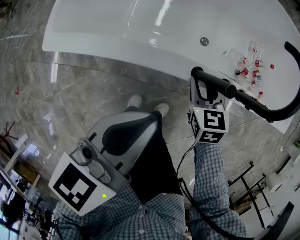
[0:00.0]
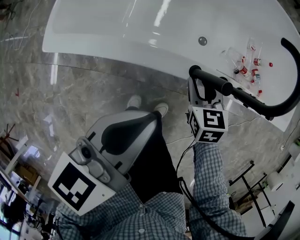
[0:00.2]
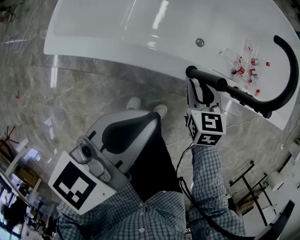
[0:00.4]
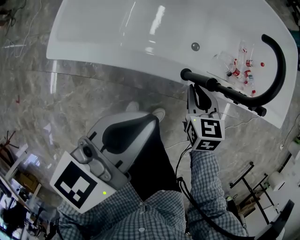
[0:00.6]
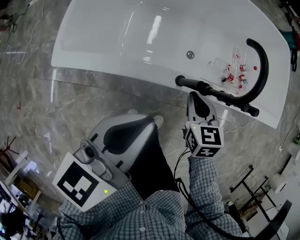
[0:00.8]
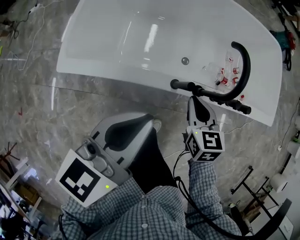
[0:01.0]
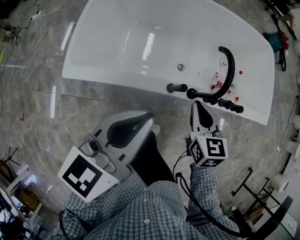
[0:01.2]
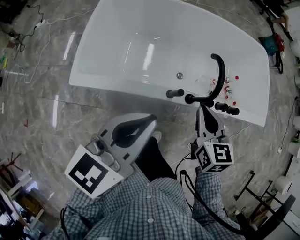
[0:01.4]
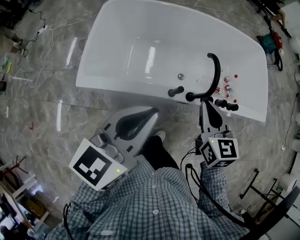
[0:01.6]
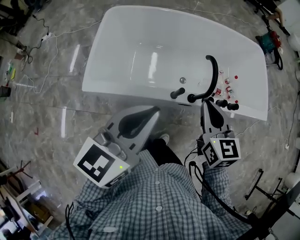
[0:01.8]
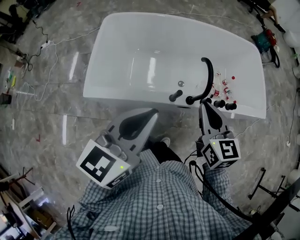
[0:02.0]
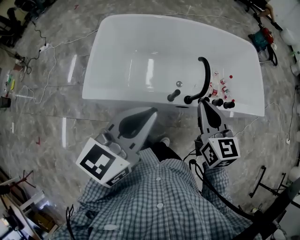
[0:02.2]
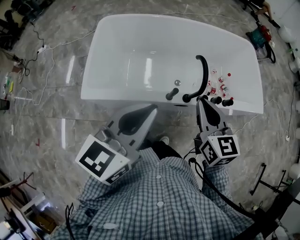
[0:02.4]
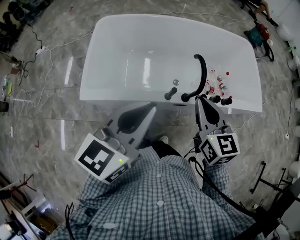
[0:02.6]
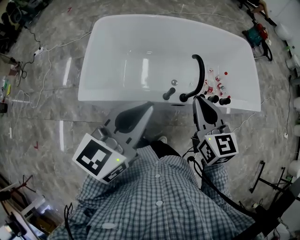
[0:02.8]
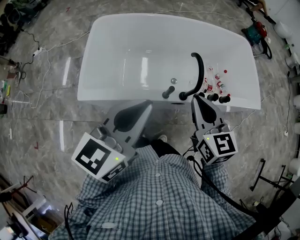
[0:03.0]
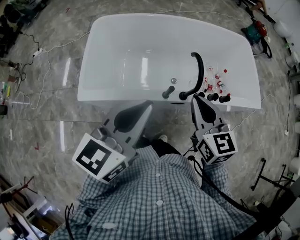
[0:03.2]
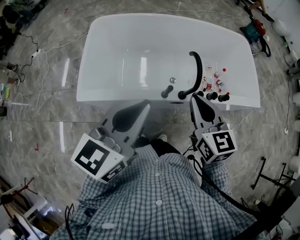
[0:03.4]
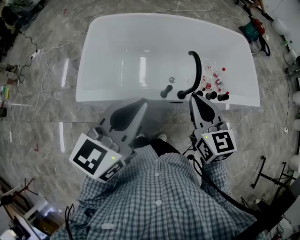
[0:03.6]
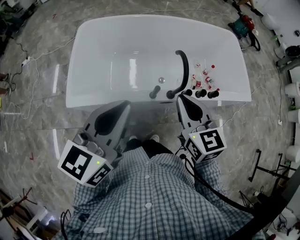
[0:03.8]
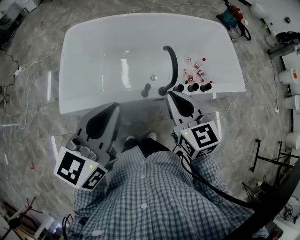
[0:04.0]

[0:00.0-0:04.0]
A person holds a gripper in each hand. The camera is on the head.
0:00.0 to 0:01.4: The two grippers go some 25 cm upward. The right gripper rotates about 20 degrees, and closes up.
0:01.4 to 0:02.6: The grippers both shift upward by approximately 10 cm.
0:02.6 to 0:04.0: The grippers make only small movements.

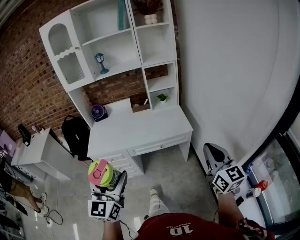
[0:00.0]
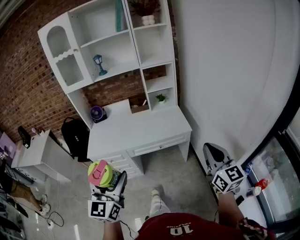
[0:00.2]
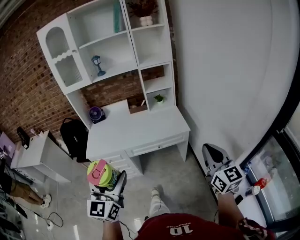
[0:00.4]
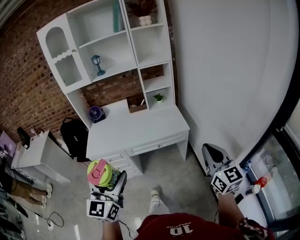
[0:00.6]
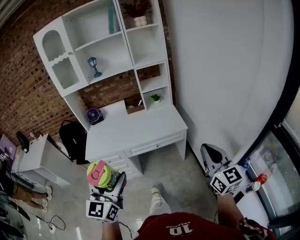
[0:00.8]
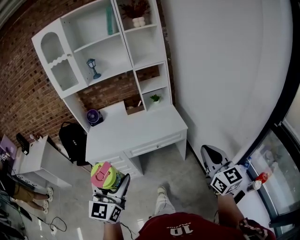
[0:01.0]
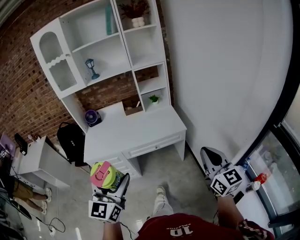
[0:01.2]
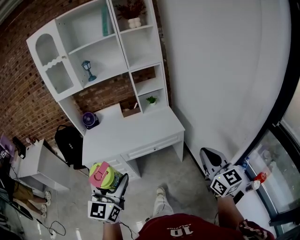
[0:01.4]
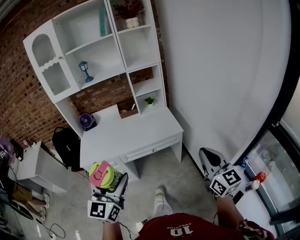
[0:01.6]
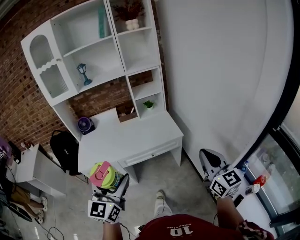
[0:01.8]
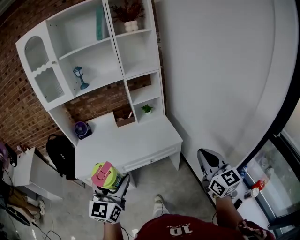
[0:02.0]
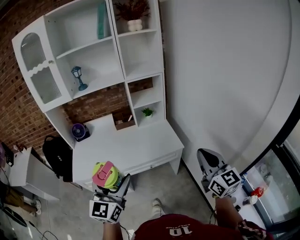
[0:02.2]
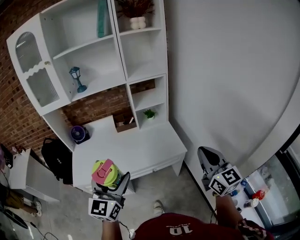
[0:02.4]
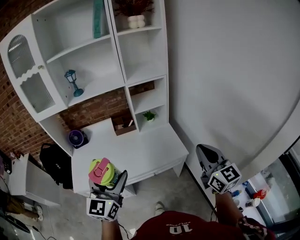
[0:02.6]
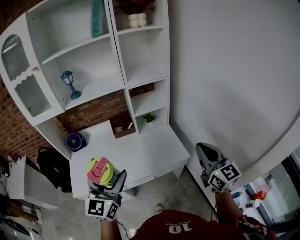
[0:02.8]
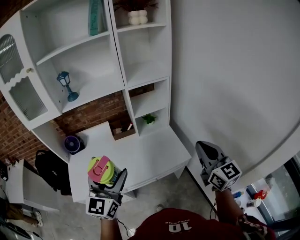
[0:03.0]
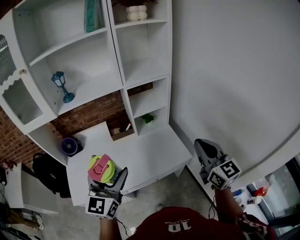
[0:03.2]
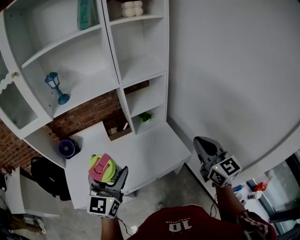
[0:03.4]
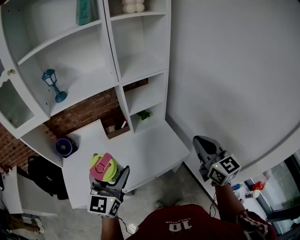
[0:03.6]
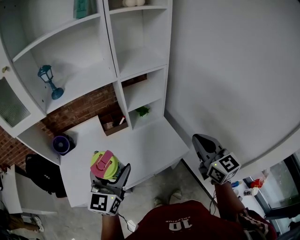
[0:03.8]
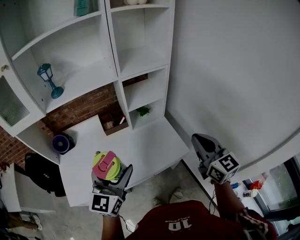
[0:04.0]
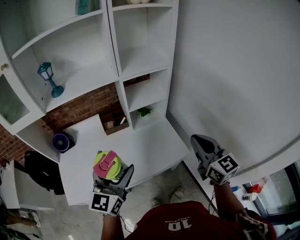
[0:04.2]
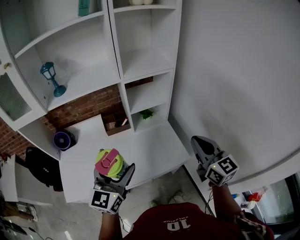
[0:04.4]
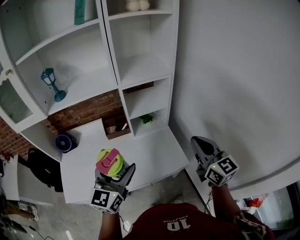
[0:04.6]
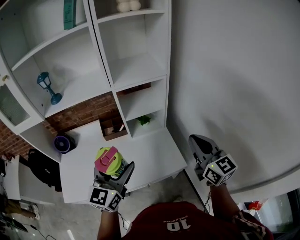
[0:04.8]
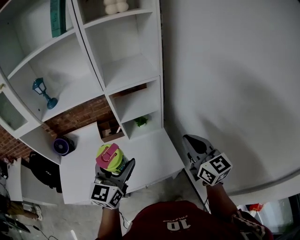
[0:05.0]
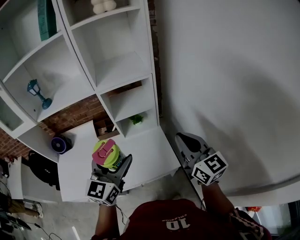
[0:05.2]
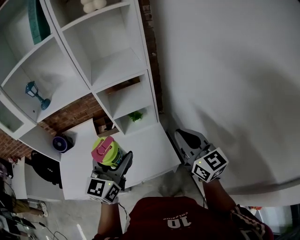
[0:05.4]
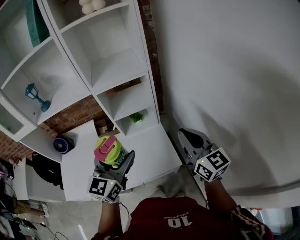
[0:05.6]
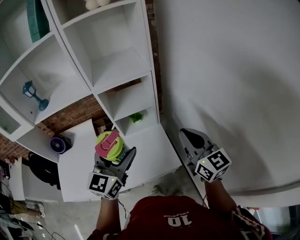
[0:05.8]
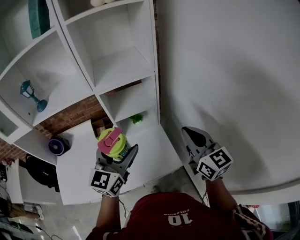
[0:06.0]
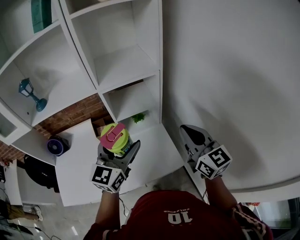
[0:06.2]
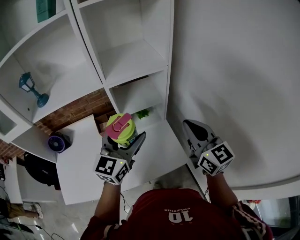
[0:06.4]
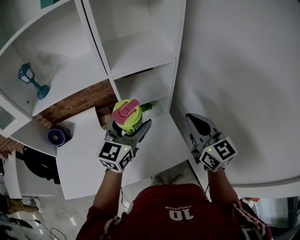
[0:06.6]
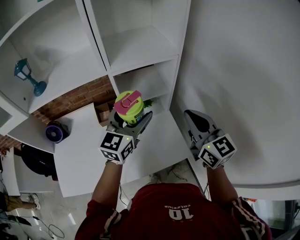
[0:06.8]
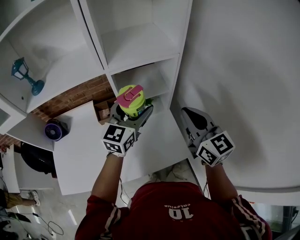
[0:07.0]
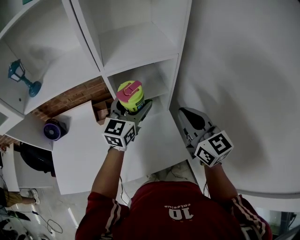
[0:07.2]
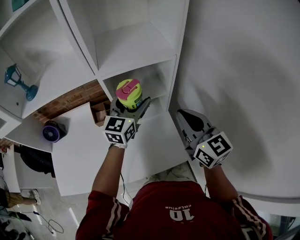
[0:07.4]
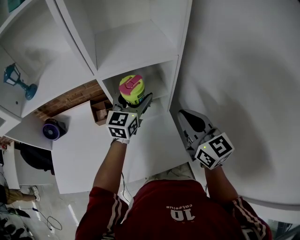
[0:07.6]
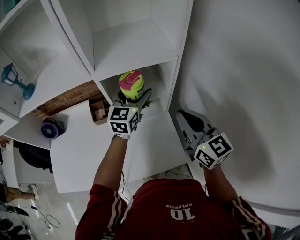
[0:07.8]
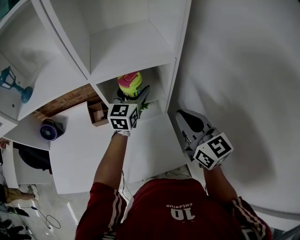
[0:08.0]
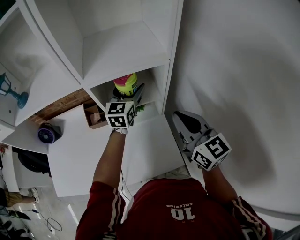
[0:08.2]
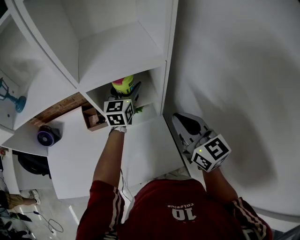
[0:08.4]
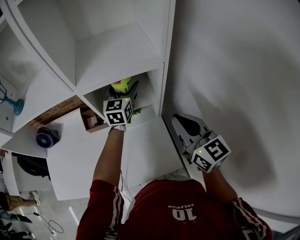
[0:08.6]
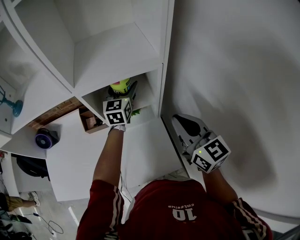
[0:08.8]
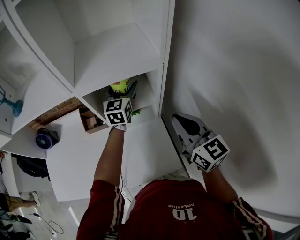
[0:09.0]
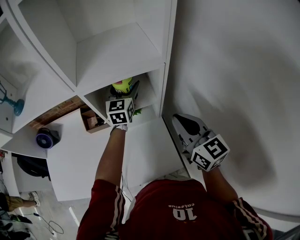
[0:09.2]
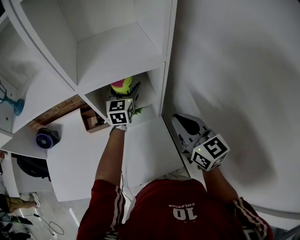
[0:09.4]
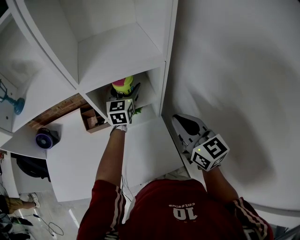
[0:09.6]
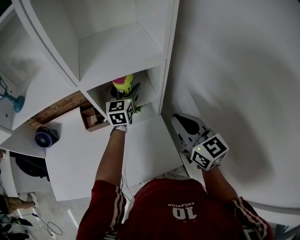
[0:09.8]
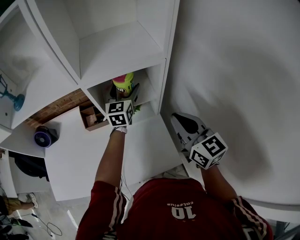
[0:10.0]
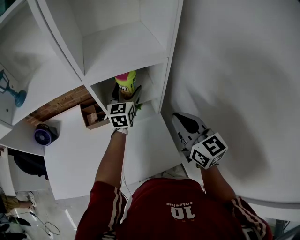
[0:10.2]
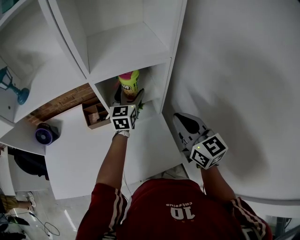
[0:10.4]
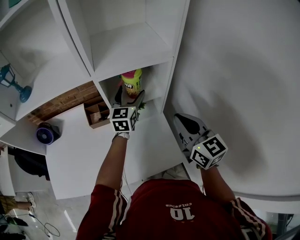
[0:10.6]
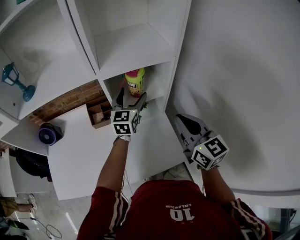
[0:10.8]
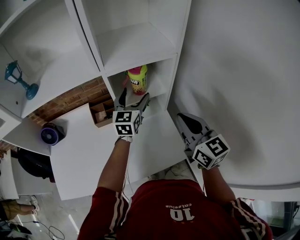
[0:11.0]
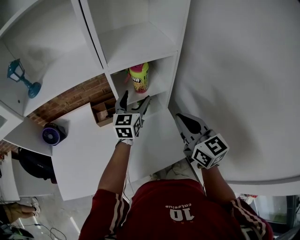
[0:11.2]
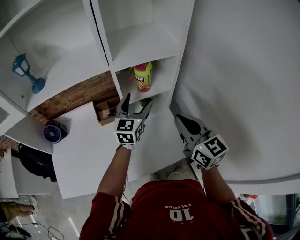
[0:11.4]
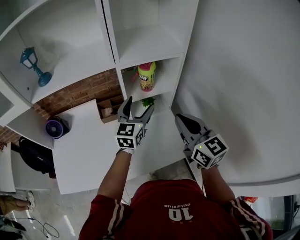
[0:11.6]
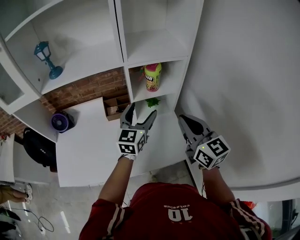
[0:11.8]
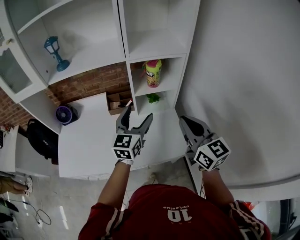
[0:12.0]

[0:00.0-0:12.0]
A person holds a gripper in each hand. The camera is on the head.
0:00.0 to 0:01.6: The grippers move only a little.
0:01.6 to 0:03.0: Both grippers travel together forward, roughly 35 cm.
0:03.0 to 0:04.4: The right gripper heads forward, covering about 10 cm. The left gripper heads forward and downward, covering roughly 10 cm.
0:04.4 to 0:06.0: The right gripper heads forward and to the right, covering some 15 cm. The left gripper moves to the right and forward, about 20 cm.
0:06.0 to 0:07.6: The right gripper moves forward and to the left, approximately 10 cm, while the left gripper travels forward by about 25 cm.
0:07.6 to 0:09.0: The left gripper shifts roughly 10 cm forward, while the right gripper changes place by approximately 5 cm.
0:09.0 to 0:10.4: The left gripper is displaced backward by roughly 5 cm.
0:10.4 to 0:12.0: The right gripper is displaced backward and to the left by approximately 15 cm, while the left gripper travels backward by about 25 cm.

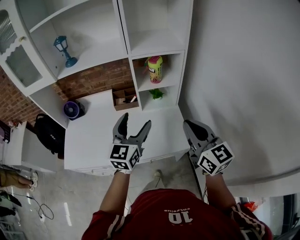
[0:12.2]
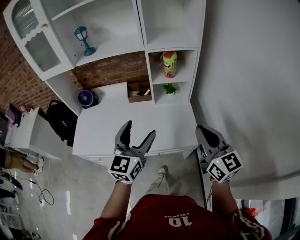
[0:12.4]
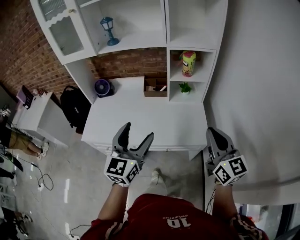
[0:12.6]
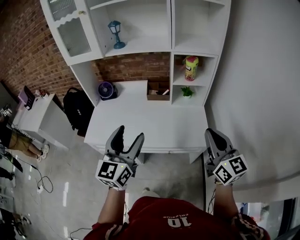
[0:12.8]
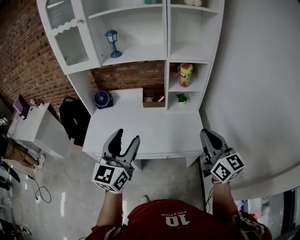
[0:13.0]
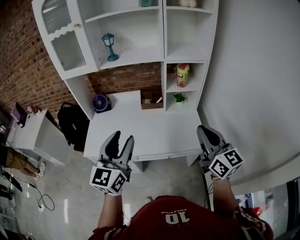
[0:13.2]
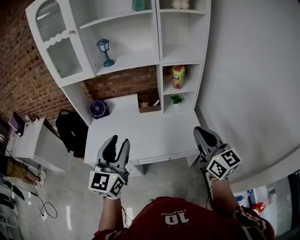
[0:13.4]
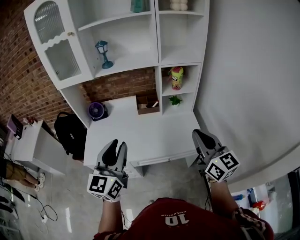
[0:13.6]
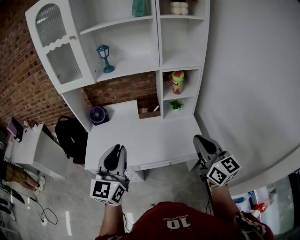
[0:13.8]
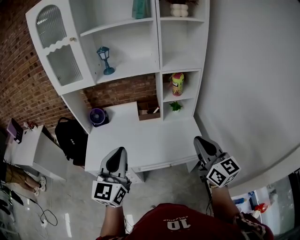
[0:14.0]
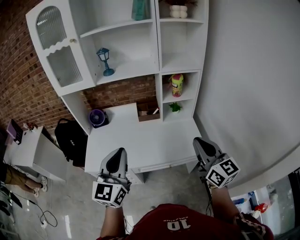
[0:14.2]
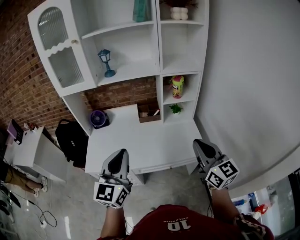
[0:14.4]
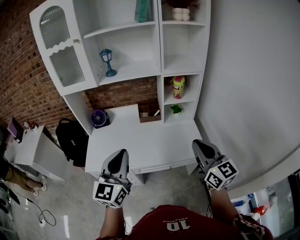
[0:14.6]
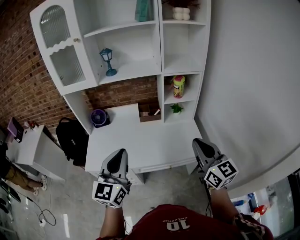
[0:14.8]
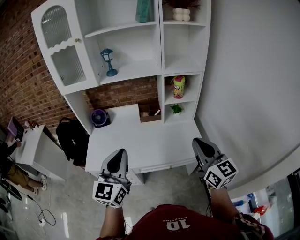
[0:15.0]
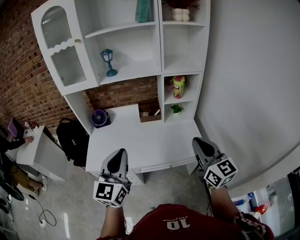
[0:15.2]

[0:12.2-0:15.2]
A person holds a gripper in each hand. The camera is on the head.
0:12.2 to 0:13.8: The right gripper shifts approximately 15 cm backward and to the left, while the left gripper goes approximately 30 cm to the left, backward and upward, and closes its fingers.
0:13.8 to 0:15.2: The grippers make only small movements.

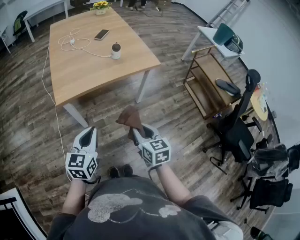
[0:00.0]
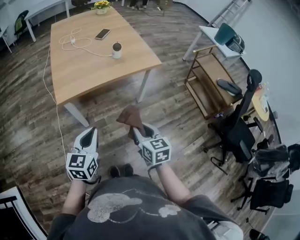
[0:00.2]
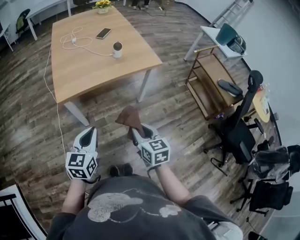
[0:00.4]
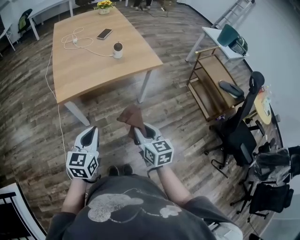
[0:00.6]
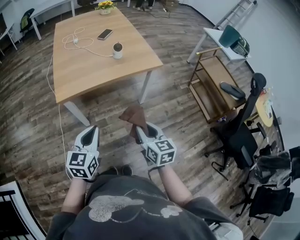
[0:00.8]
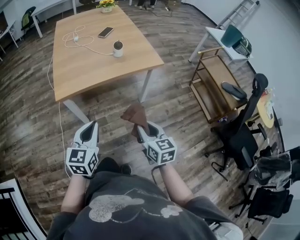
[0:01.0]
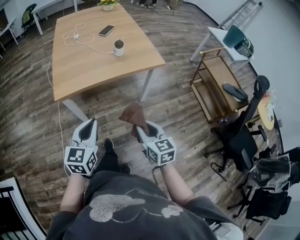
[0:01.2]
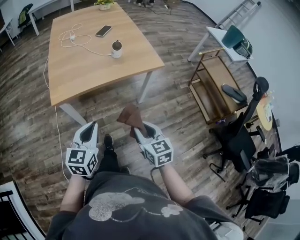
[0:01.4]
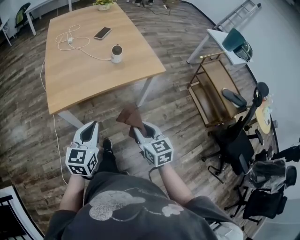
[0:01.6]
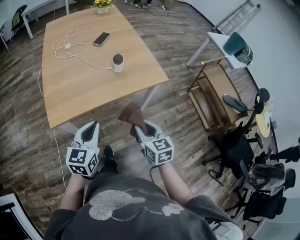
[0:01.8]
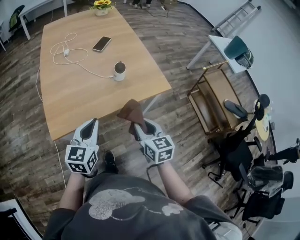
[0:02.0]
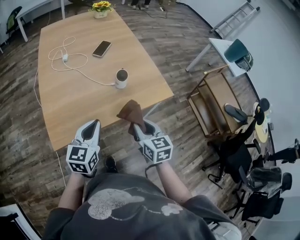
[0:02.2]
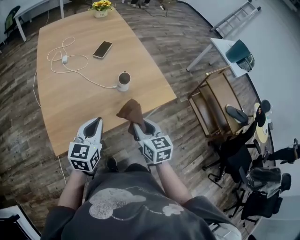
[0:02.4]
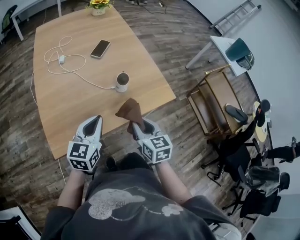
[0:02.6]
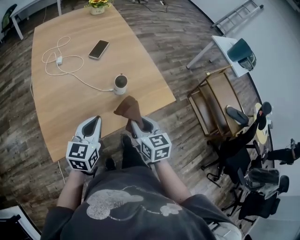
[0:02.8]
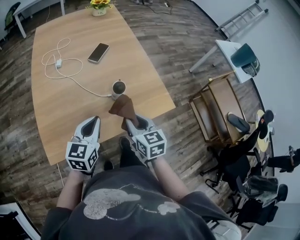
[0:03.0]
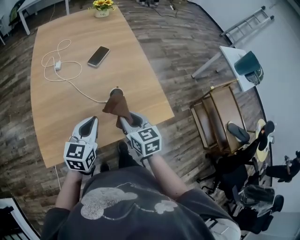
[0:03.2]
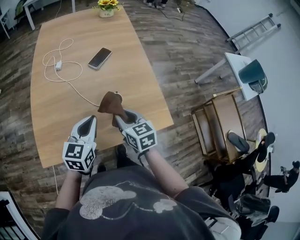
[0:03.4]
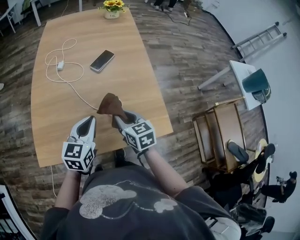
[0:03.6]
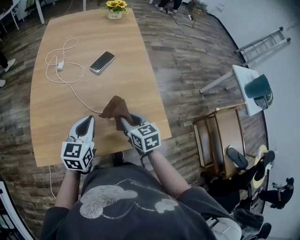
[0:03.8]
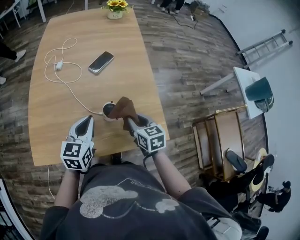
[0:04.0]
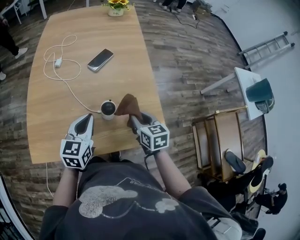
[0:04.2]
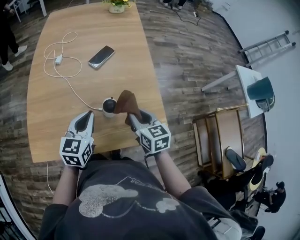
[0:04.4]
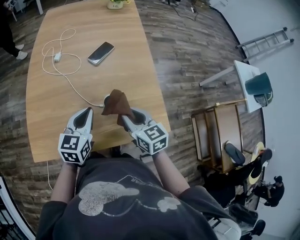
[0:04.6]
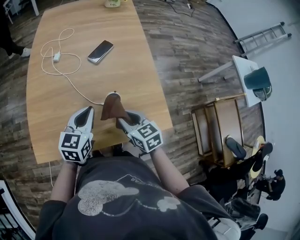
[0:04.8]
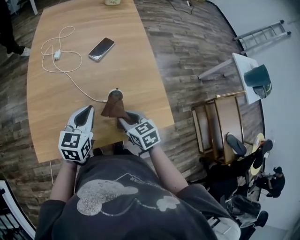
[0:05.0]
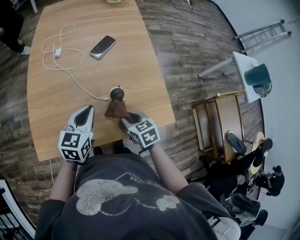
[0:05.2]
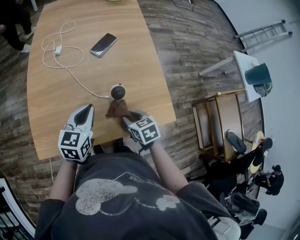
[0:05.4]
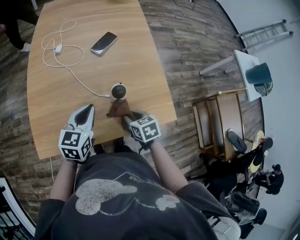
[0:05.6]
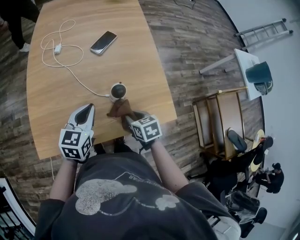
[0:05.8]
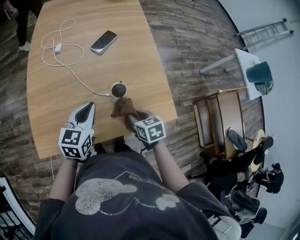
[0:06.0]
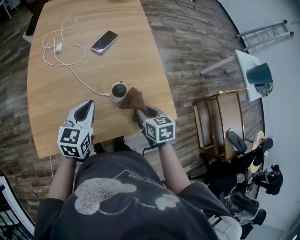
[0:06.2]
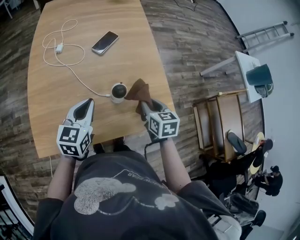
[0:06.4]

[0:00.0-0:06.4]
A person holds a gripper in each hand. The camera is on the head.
0:00.0 to 0:01.6: Both grippers move forward, roughly 10 cm.
0:01.6 to 0:03.2: Both grippers travel together forward, about 35 cm.
0:03.2 to 0:04.8: The left gripper heads forward, covering approximately 5 cm. Meanwhile the right gripper reaches roughly 10 cm to the right, then returns.
0:04.8 to 0:06.4: The right gripper goes about 10 cm to the right, and swivels roughly 20 degrees.
